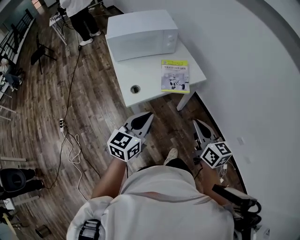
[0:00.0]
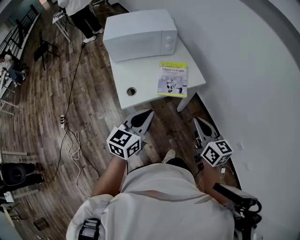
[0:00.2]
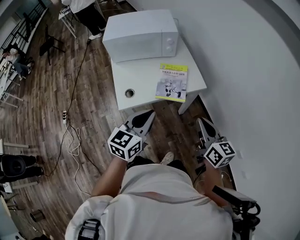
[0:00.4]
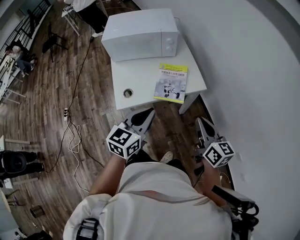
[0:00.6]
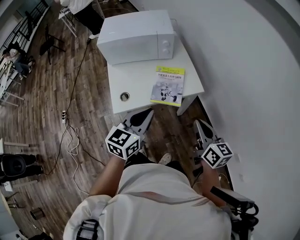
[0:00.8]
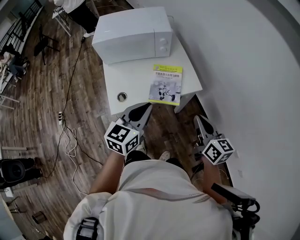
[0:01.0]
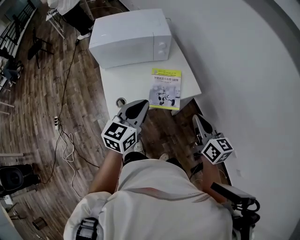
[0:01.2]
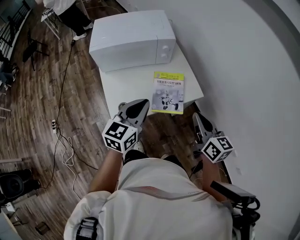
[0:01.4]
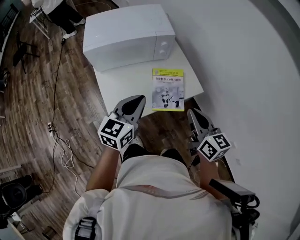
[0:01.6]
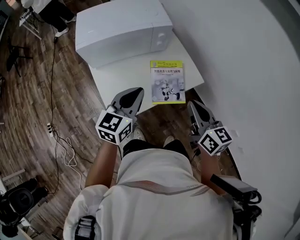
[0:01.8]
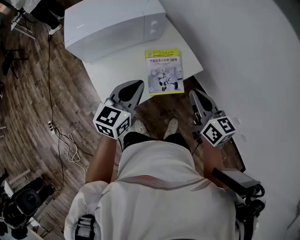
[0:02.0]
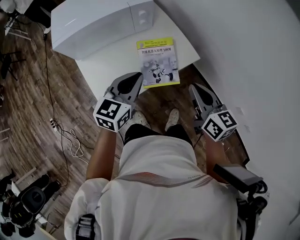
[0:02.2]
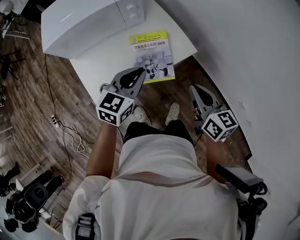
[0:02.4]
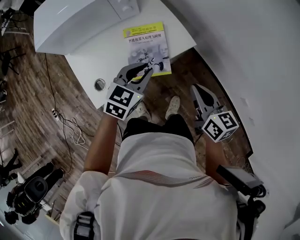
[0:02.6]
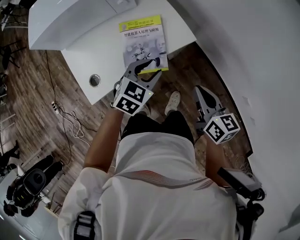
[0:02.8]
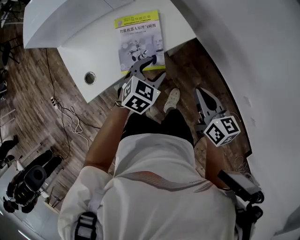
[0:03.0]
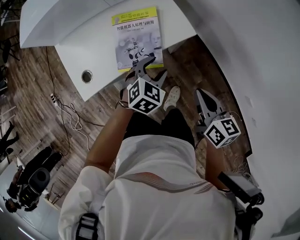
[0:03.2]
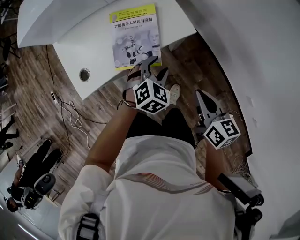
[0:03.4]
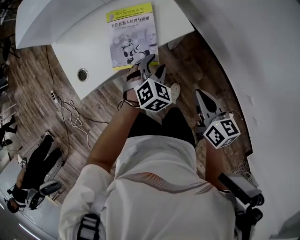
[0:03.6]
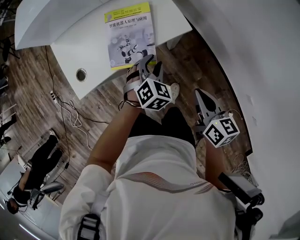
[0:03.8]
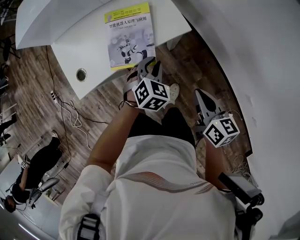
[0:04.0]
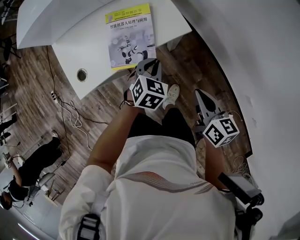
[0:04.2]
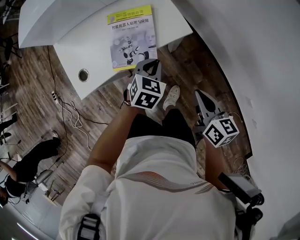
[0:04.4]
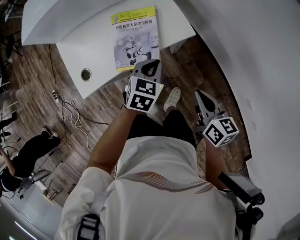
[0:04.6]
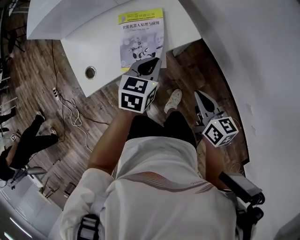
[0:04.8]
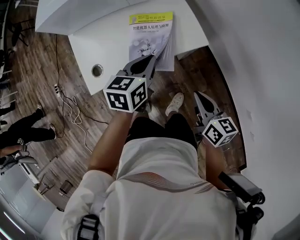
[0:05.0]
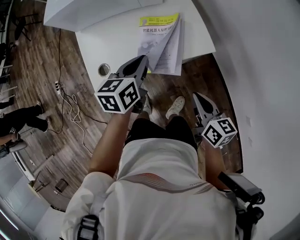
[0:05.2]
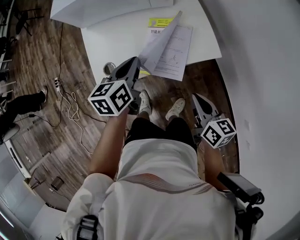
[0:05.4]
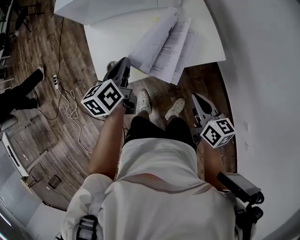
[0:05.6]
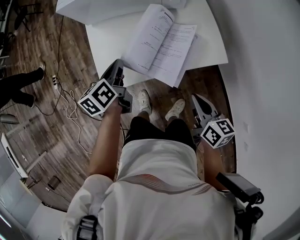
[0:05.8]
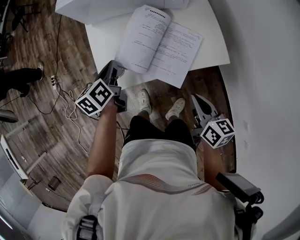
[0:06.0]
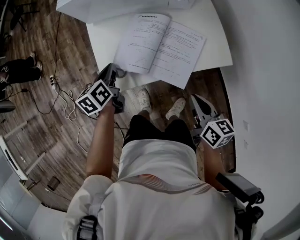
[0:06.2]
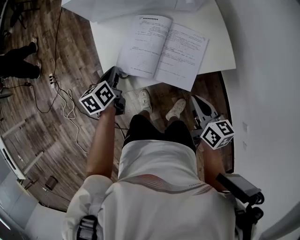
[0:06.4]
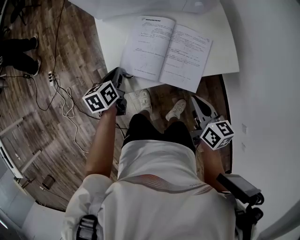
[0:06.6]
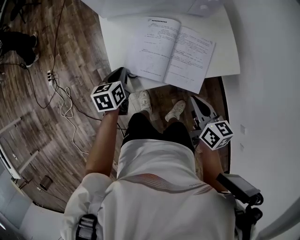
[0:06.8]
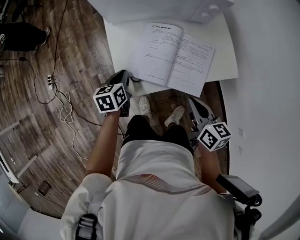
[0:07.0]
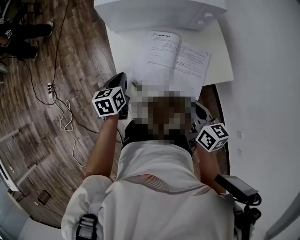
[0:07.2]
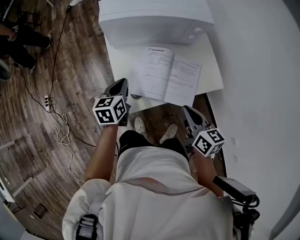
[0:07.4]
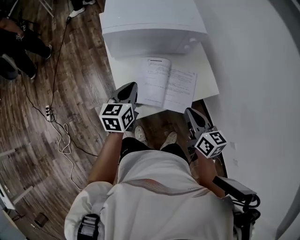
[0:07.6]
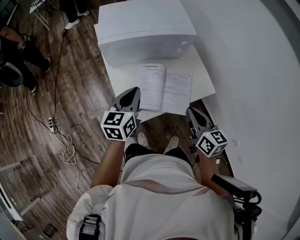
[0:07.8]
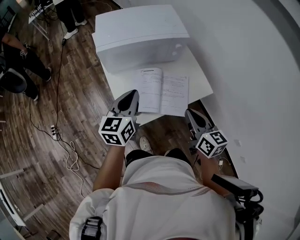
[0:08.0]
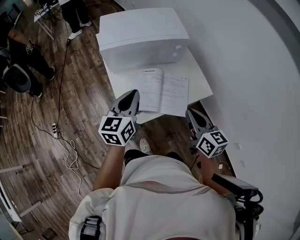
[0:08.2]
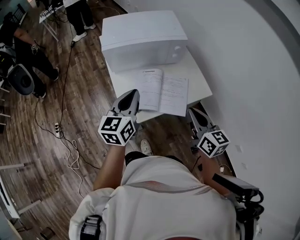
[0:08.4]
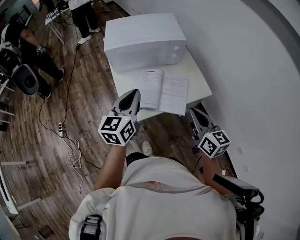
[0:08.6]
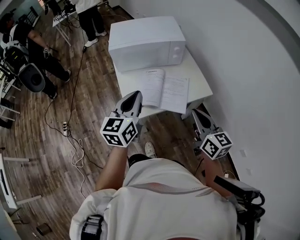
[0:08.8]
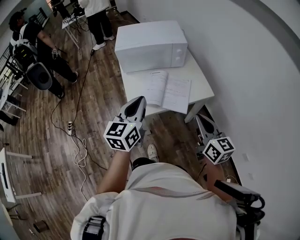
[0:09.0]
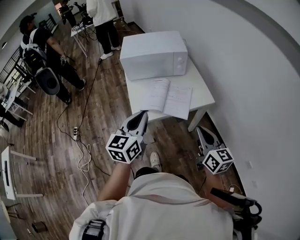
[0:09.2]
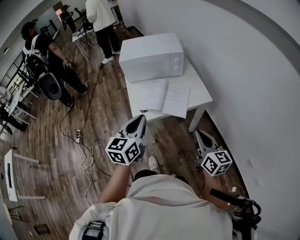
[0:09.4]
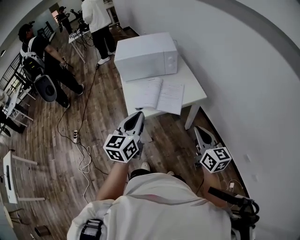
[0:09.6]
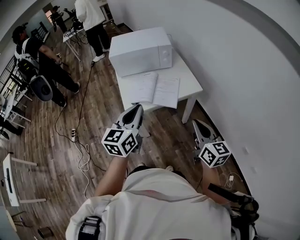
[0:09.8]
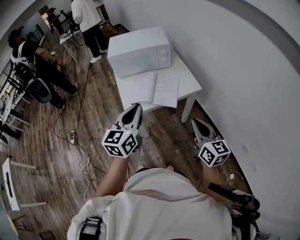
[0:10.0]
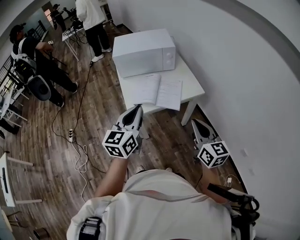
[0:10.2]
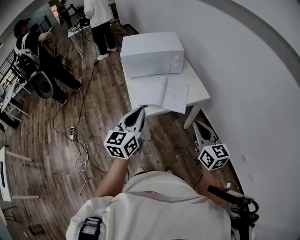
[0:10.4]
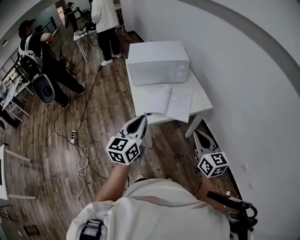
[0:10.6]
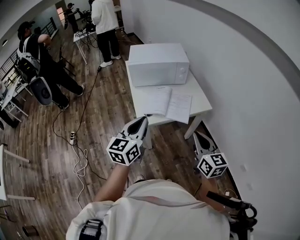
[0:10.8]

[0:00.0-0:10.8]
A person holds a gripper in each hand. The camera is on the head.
0:00.0 to 0:01.6: The two grippers go some 25 cm forward.
0:01.6 to 0:03.0: The left gripper travels downward and to the right by roughly 30 cm, points its fingers approximately 30 degrees further downward, and opens. The right gripper goes roughly 25 cm to the right and downward.
0:03.0 to 0:04.6: The left gripper closes.
0:04.6 to 0:06.2: The left gripper moves to the left, roughly 35 cm, and rotates around the line of its fingers by approximately 50 degrees, counterclockwise from behind. The right gripper shifts some 20 cm to the left and forward.
0:06.2 to 0:07.8: The left gripper shifts some 15 cm upward, and rotates some 40 degrees. The right gripper heads upward and to the left, covering about 15 cm.
0:07.8 to 0:09.2: The left gripper is displaced backward and upward by roughly 25 cm. The right gripper goes about 20 cm backward and to the right.
0:09.2 to 0:10.8: The left gripper shifts about 10 cm backward and to the left. The right gripper goes approximately 10 cm to the left and backward.

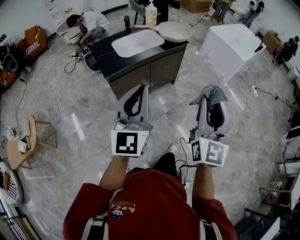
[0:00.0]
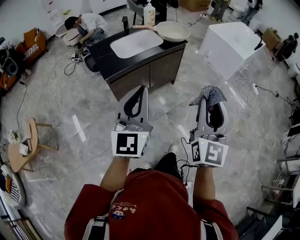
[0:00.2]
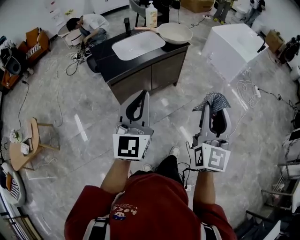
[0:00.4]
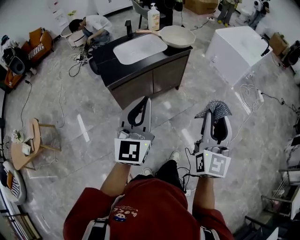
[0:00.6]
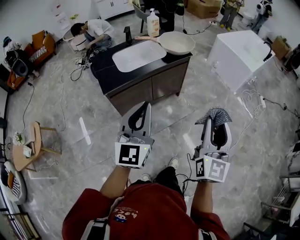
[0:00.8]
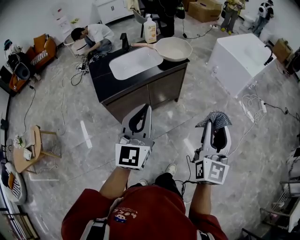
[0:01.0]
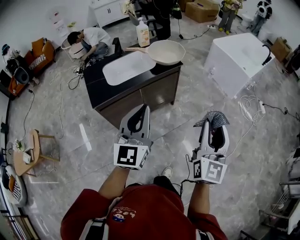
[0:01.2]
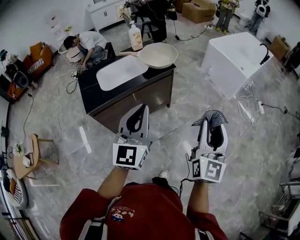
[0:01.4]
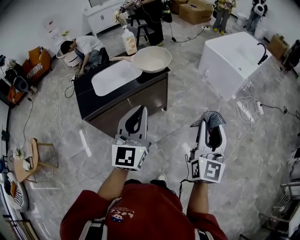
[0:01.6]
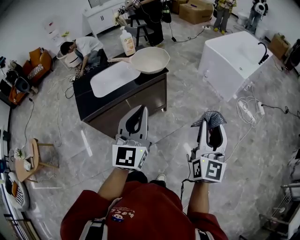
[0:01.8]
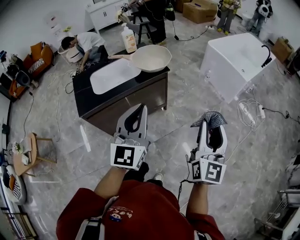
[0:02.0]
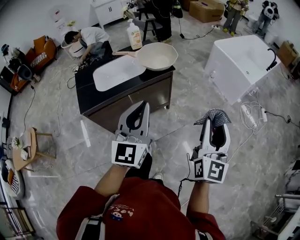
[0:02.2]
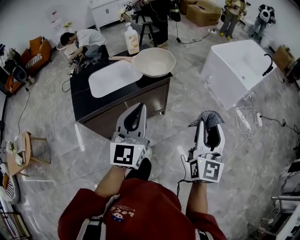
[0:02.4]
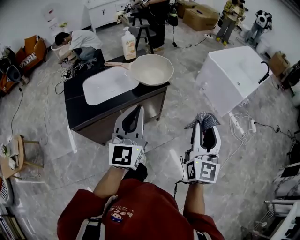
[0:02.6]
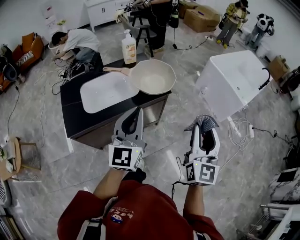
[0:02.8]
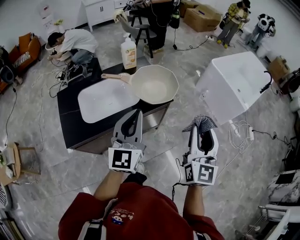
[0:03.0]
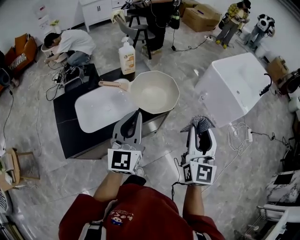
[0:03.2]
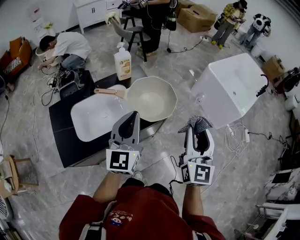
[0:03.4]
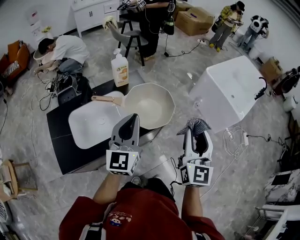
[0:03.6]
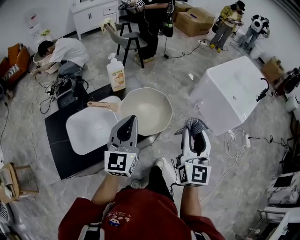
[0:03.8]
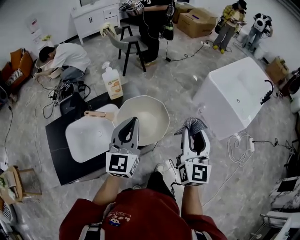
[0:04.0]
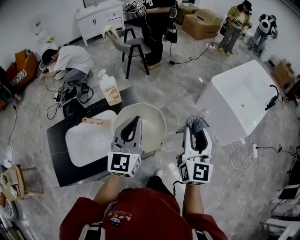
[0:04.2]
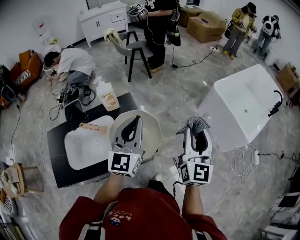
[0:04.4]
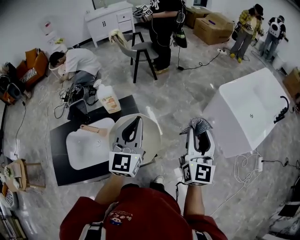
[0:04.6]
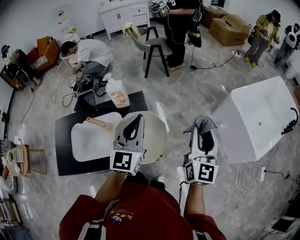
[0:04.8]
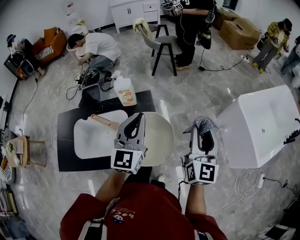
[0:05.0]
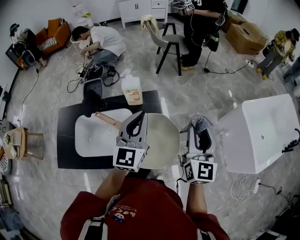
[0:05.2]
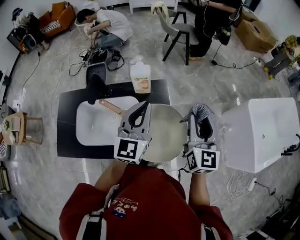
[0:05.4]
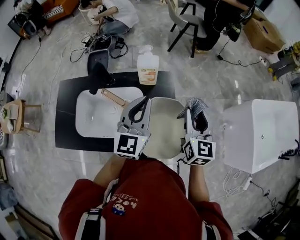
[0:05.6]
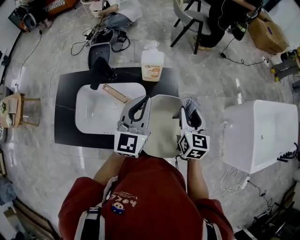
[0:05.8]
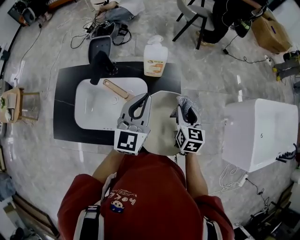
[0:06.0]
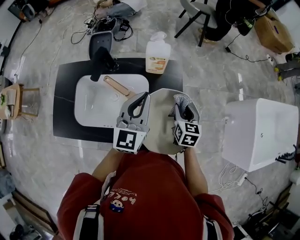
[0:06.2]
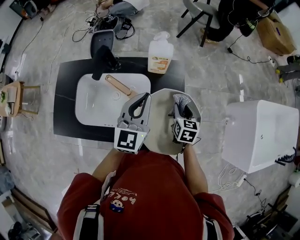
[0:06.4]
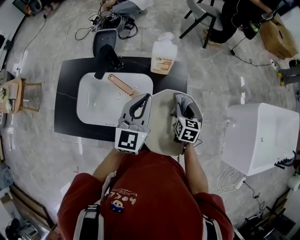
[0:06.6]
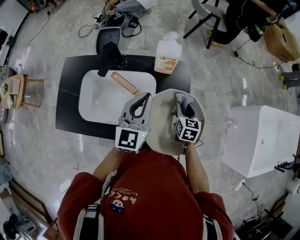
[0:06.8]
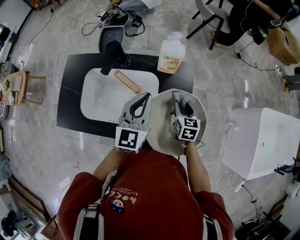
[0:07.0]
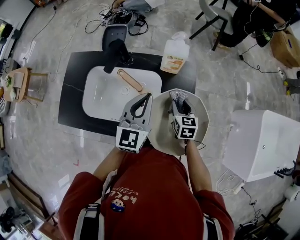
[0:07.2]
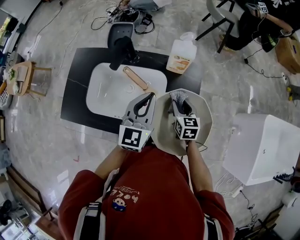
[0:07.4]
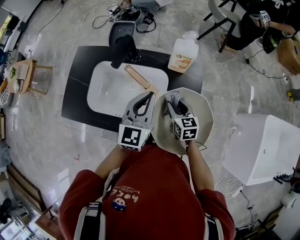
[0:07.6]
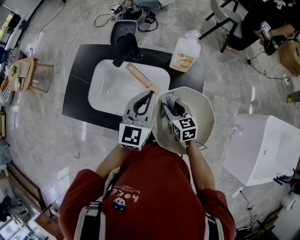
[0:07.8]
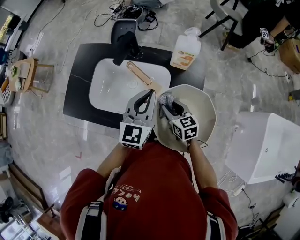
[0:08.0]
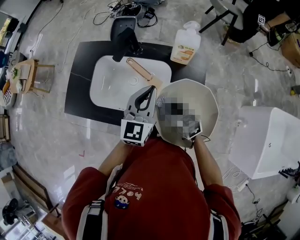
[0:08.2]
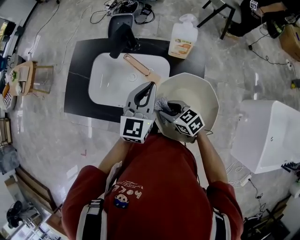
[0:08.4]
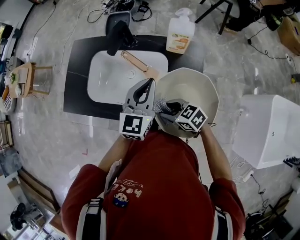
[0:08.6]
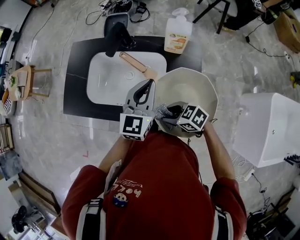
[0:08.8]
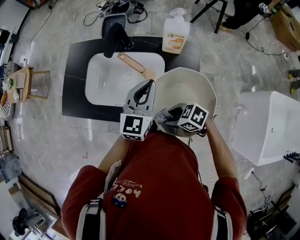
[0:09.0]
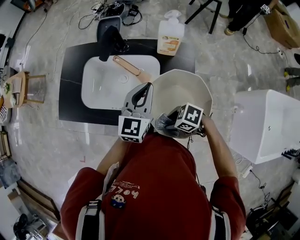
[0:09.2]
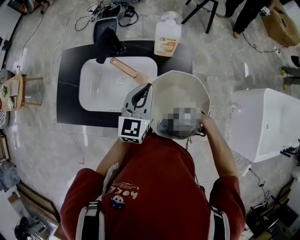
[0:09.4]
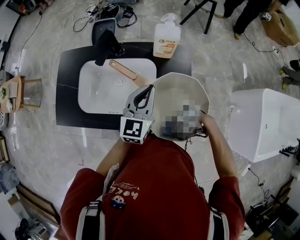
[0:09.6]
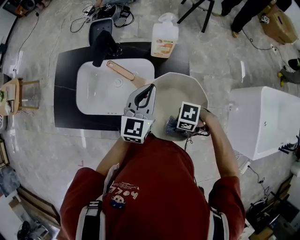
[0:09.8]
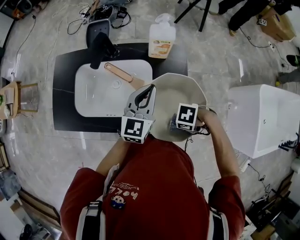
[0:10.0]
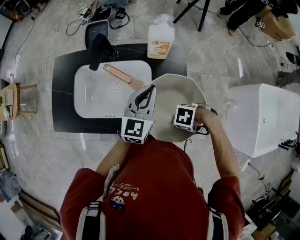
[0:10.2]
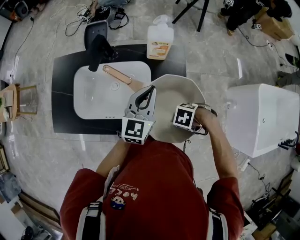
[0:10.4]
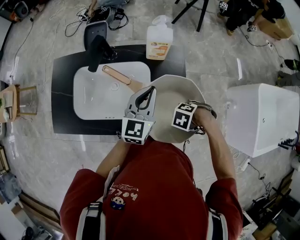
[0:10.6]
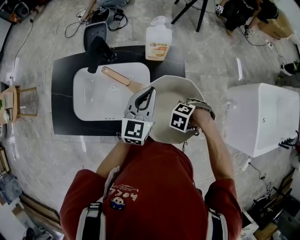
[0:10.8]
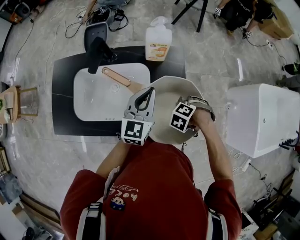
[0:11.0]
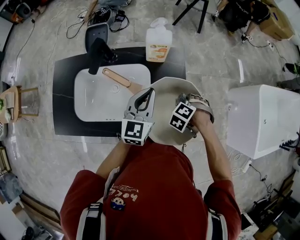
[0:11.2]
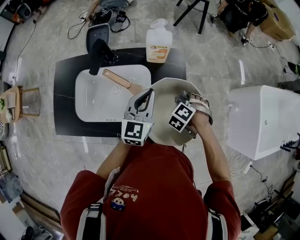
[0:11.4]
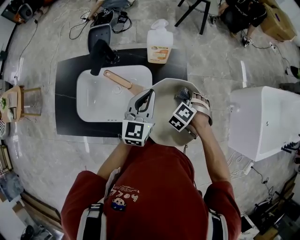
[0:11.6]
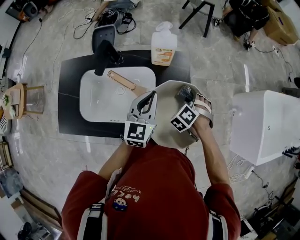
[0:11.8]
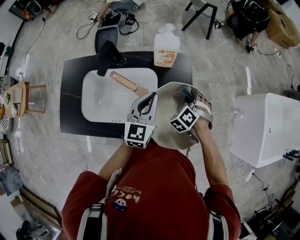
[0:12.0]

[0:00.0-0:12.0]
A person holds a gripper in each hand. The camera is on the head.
0:00.0 to 0:01.6: The right gripper moves to the right and forward, some 30 cm, while the left gripper shifts some 30 cm forward and to the right.
0:01.6 to 0:03.0: The two grippers go roughly 25 cm forward.
0:03.0 to 0:04.4: The two grippers go approximately 30 cm forward.
0:04.4 to 0:06.0: The left gripper shifts by some 20 cm, and changes its angle by some 20 degrees. Meanwhile the right gripper moves about 35 cm, and tips its fingers downward by some 40 degrees.
0:06.0 to 0:07.6: The right gripper goes roughly 15 cm to the left and downward, and swivels about 30 degrees. The left gripper shifts approximately 5 cm to the left.
0:07.6 to 0:09.0: The right gripper ends up approximately 15 cm from where it was, and changes its angle by roughly 60 degrees.
0:09.0 to 0:10.4: The right gripper shifts by approximately 15 cm, and rotates about 40 degrees, while the left gripper changes place by about 5 cm.
0:10.4 to 0:12.0: The right gripper ends up some 15 cm from where it was, and rotates about 60 degrees.

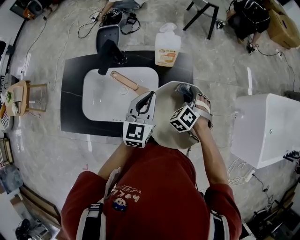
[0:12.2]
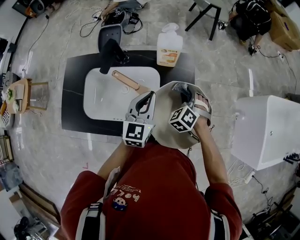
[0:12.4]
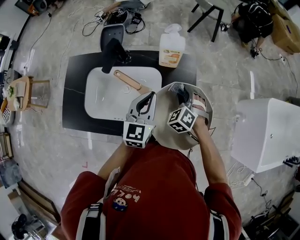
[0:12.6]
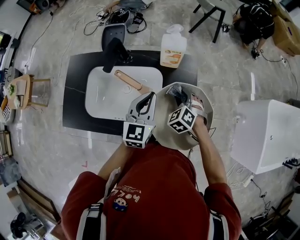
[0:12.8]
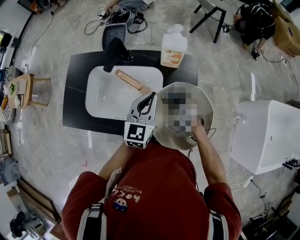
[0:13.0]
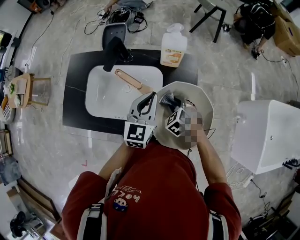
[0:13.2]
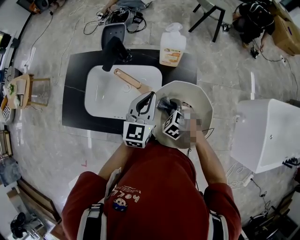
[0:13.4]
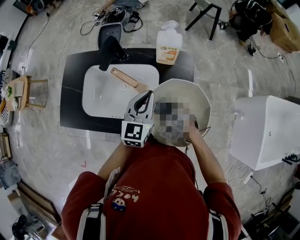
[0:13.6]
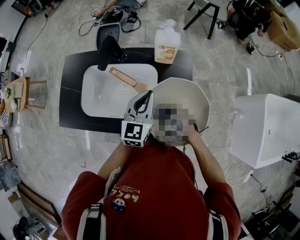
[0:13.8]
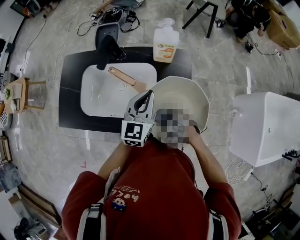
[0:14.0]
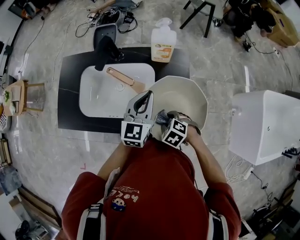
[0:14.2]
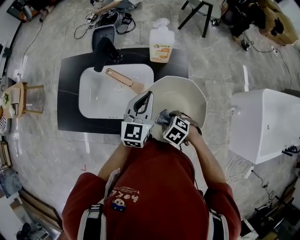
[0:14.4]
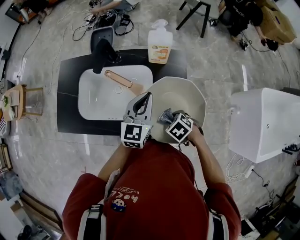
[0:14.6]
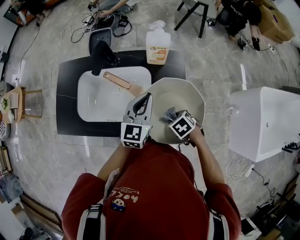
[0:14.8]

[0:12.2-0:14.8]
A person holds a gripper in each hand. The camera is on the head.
0:12.2 to 0:13.4: The right gripper ends up roughly 15 cm from where it was, and rotates about 30 degrees.
0:13.4 to 0:14.8: The right gripper is displaced backward by about 10 cm, and changes its angle by about 30 degrees.
